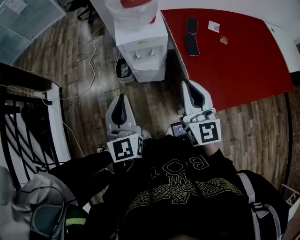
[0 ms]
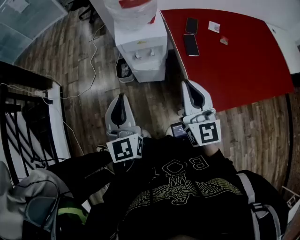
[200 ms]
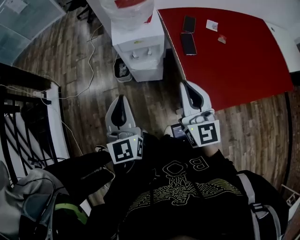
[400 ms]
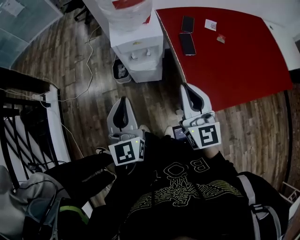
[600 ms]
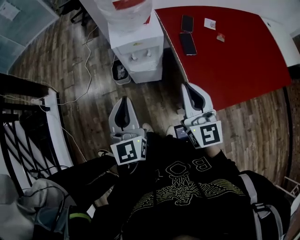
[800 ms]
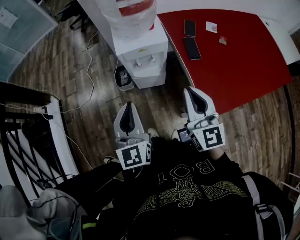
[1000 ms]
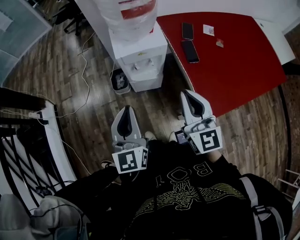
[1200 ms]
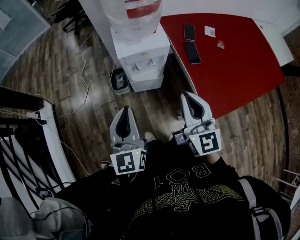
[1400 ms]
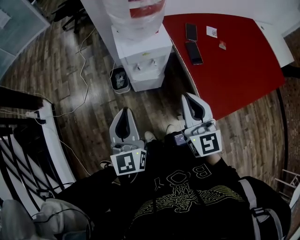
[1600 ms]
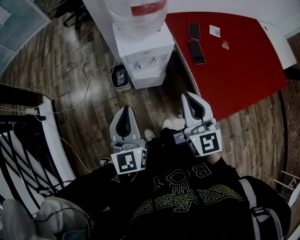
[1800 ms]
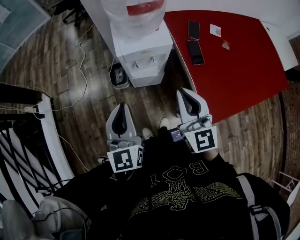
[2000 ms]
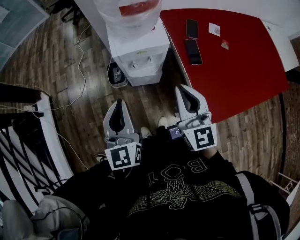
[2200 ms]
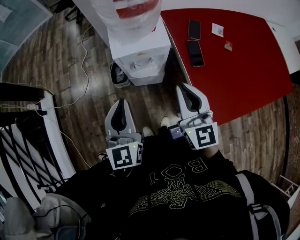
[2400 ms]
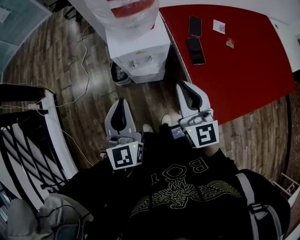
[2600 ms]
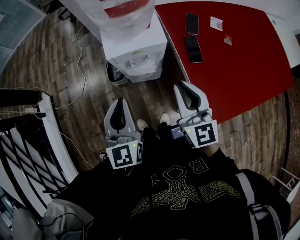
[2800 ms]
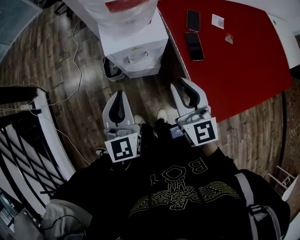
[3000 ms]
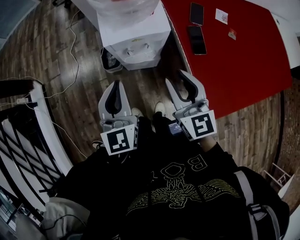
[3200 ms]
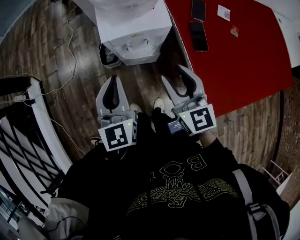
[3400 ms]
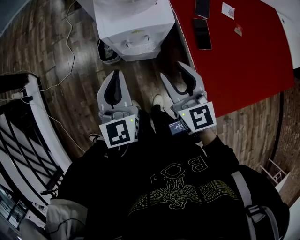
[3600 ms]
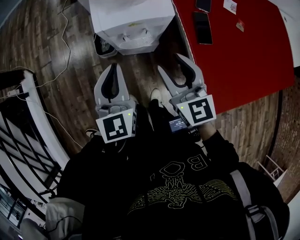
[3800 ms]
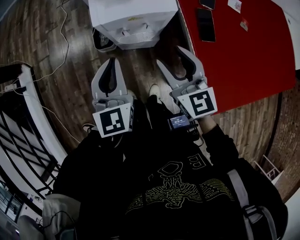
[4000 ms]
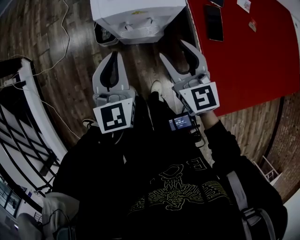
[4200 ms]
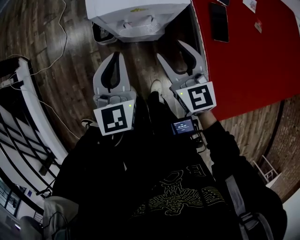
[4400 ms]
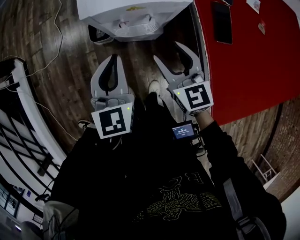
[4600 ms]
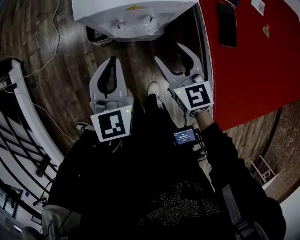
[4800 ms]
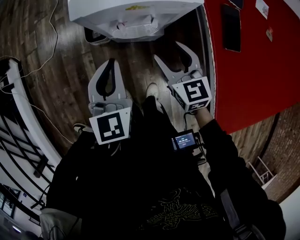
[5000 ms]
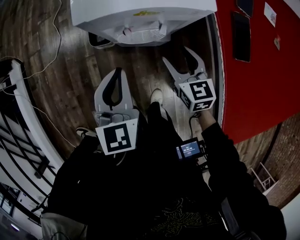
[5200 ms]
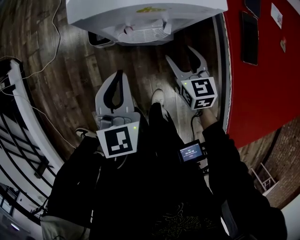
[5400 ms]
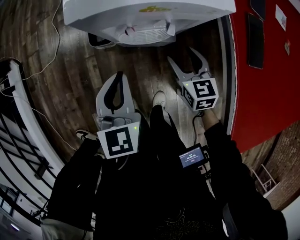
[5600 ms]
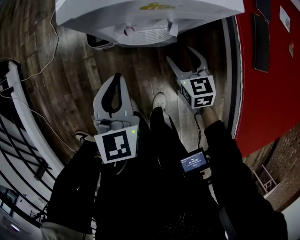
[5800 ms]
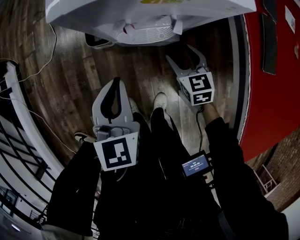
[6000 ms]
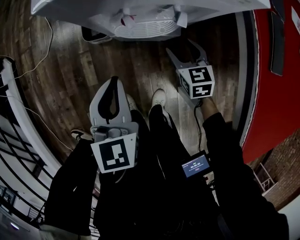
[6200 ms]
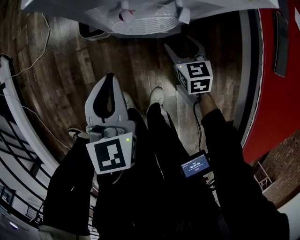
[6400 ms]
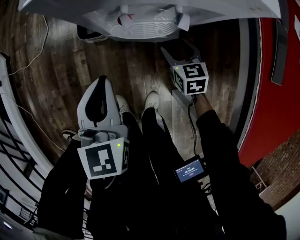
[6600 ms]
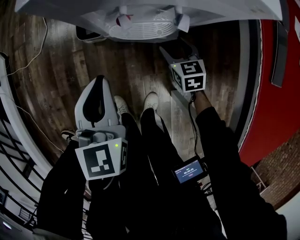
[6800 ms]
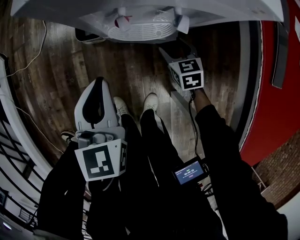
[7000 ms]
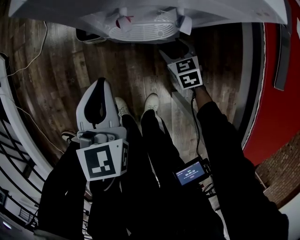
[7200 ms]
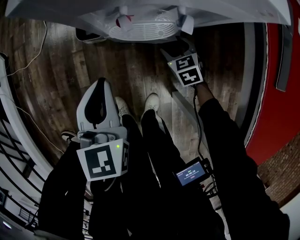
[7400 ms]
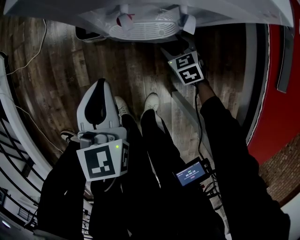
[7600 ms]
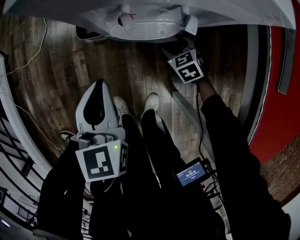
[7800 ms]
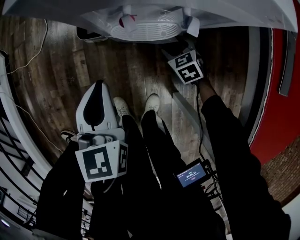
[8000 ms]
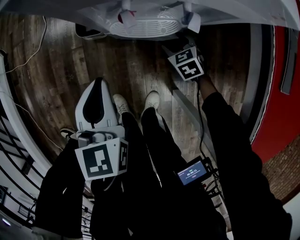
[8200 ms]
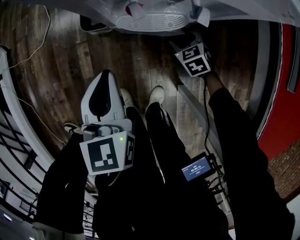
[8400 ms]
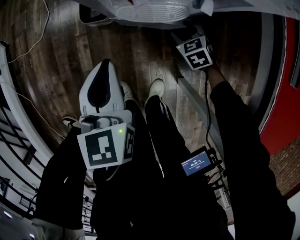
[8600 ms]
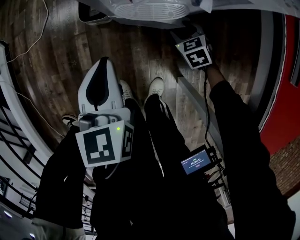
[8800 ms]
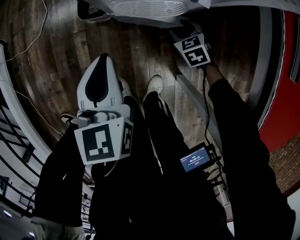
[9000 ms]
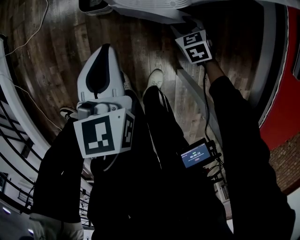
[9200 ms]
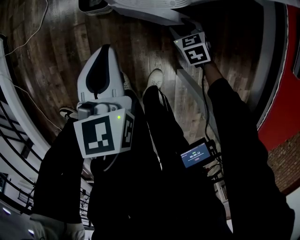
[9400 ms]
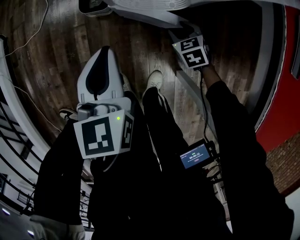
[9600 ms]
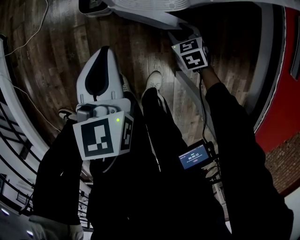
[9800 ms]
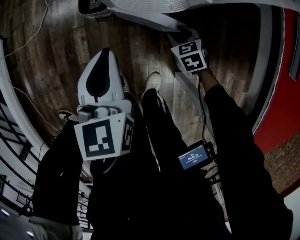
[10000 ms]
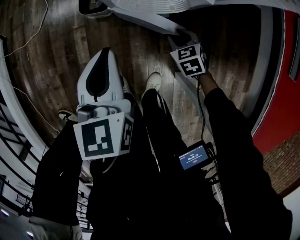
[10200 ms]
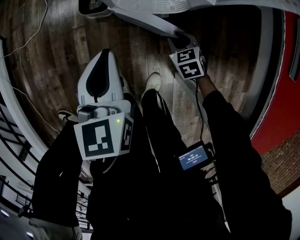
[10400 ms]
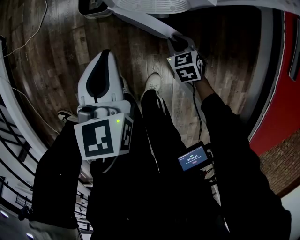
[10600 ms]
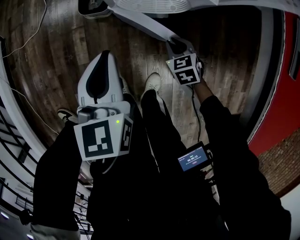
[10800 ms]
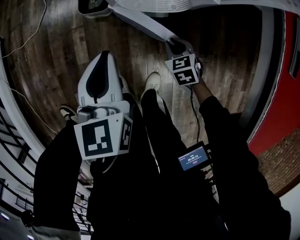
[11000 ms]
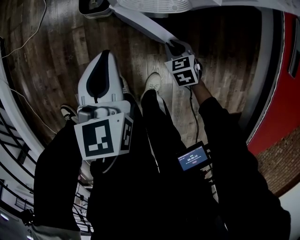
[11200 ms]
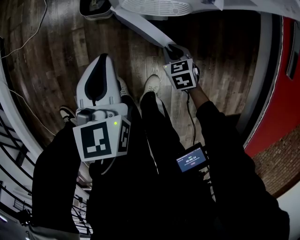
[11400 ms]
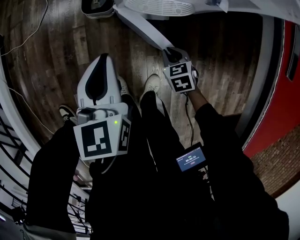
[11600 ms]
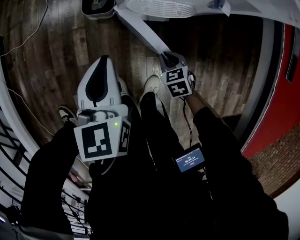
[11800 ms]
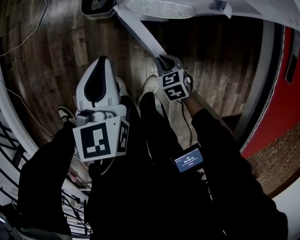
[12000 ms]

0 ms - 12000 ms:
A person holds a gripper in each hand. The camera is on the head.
0 ms - 1600 ms: The right gripper is displaced to the left by about 5 cm; the left gripper shifts roughly 10 cm to the left and forward.
1600 ms - 3000 ms: The right gripper travels forward and downward by some 10 cm, while the left gripper goes approximately 10 cm forward and to the right.
3000 ms - 4400 ms: Both grippers move downward and forward, about 15 cm. The right gripper opens up.
4400 ms - 6000 ms: The left gripper shifts roughly 20 cm downward, while the right gripper moves downward, about 30 cm, and rotates approximately 20 degrees.
6000 ms - 7600 ms: The right gripper goes some 15 cm downward, and swivels some 20 degrees.
7600 ms - 9000 ms: The grippers stay close to where they were, moving slightly.
9000 ms - 10400 ms: The right gripper ends up about 5 cm from where it was.
10400 ms - 12000 ms: The right gripper heads to the left and backward, covering approximately 10 cm; the left gripper heads to the left, covering about 5 cm.

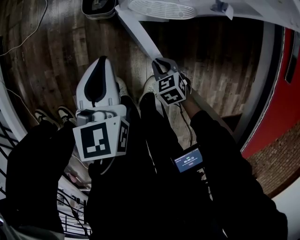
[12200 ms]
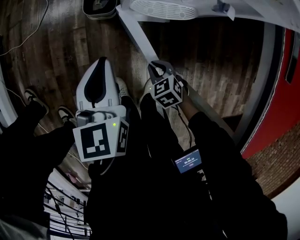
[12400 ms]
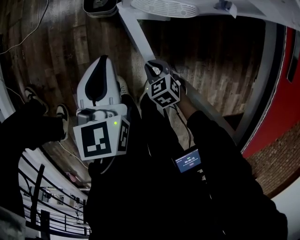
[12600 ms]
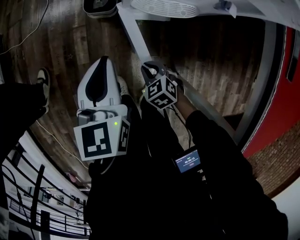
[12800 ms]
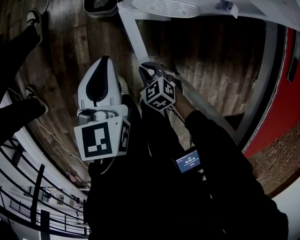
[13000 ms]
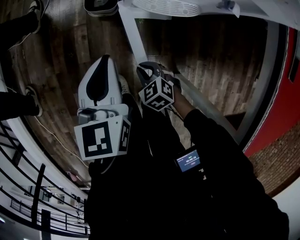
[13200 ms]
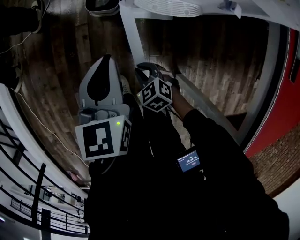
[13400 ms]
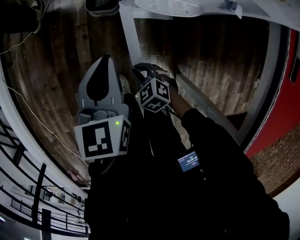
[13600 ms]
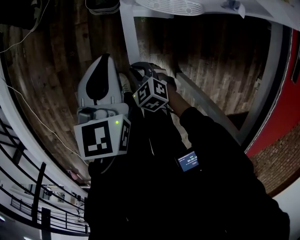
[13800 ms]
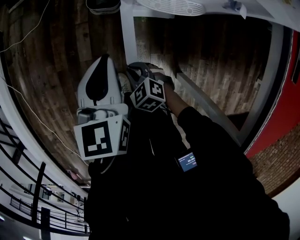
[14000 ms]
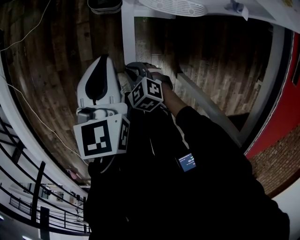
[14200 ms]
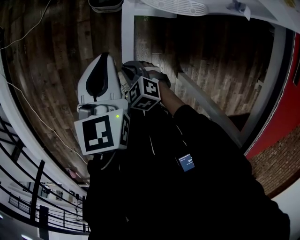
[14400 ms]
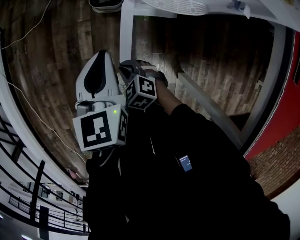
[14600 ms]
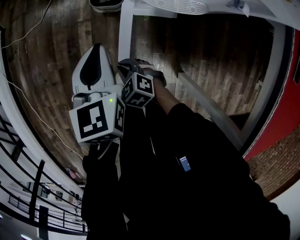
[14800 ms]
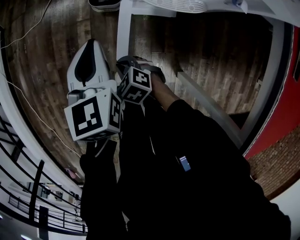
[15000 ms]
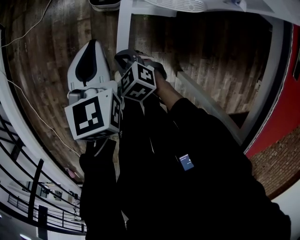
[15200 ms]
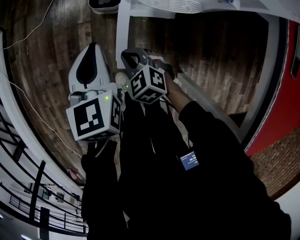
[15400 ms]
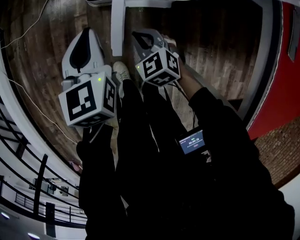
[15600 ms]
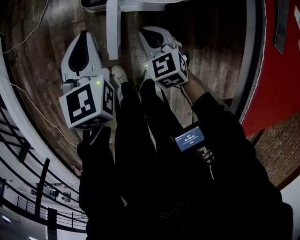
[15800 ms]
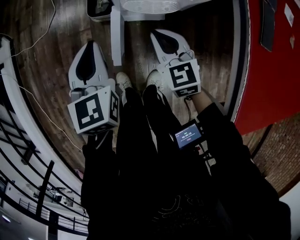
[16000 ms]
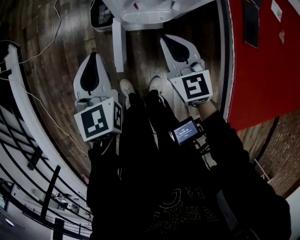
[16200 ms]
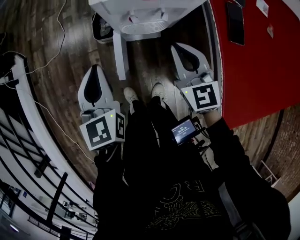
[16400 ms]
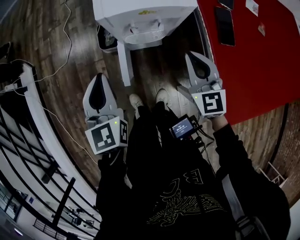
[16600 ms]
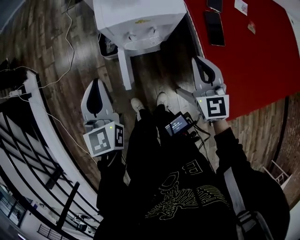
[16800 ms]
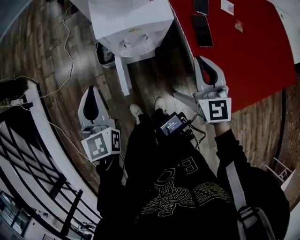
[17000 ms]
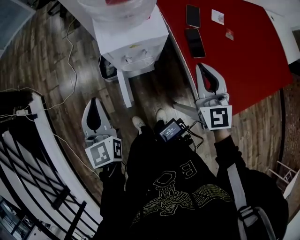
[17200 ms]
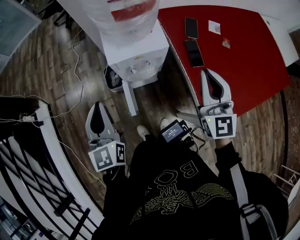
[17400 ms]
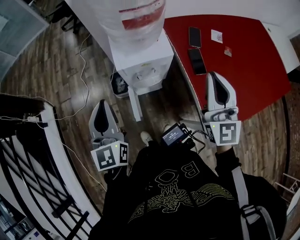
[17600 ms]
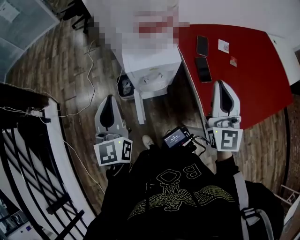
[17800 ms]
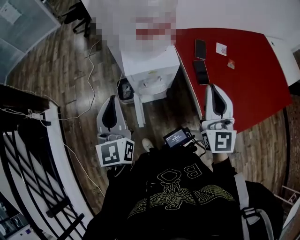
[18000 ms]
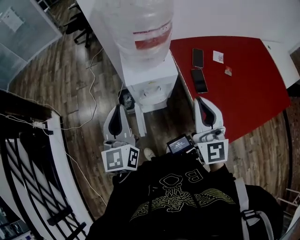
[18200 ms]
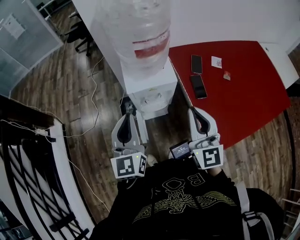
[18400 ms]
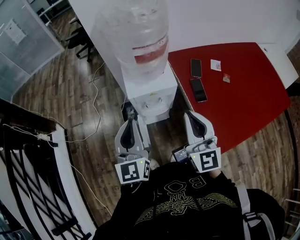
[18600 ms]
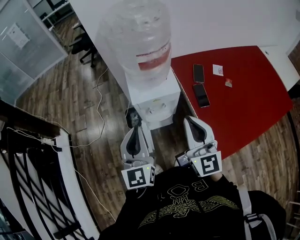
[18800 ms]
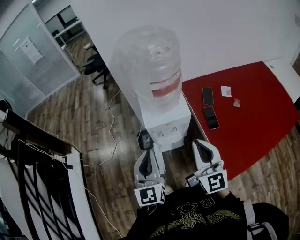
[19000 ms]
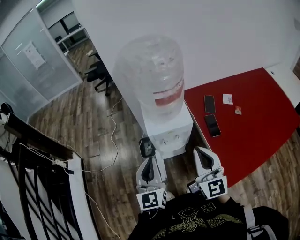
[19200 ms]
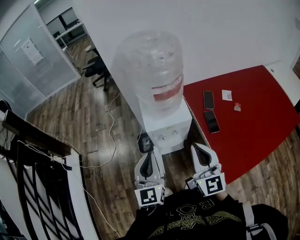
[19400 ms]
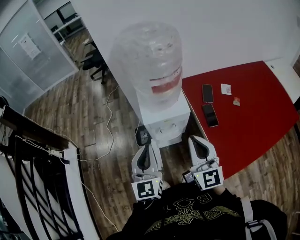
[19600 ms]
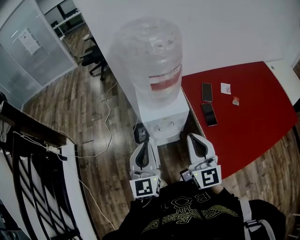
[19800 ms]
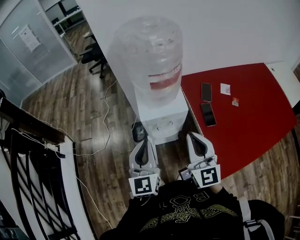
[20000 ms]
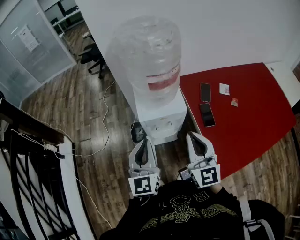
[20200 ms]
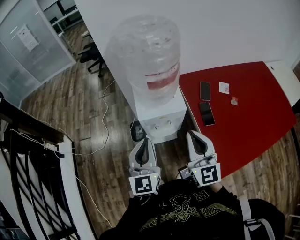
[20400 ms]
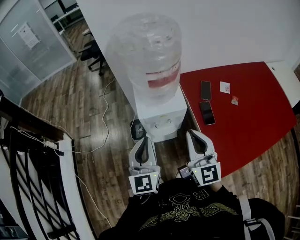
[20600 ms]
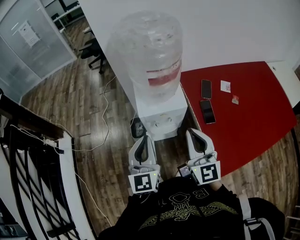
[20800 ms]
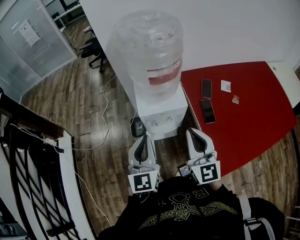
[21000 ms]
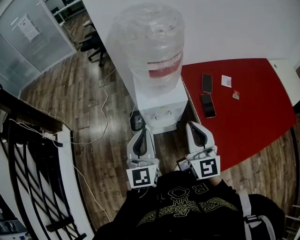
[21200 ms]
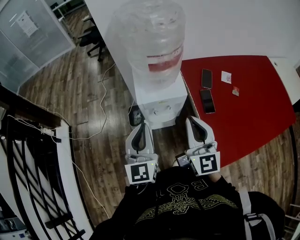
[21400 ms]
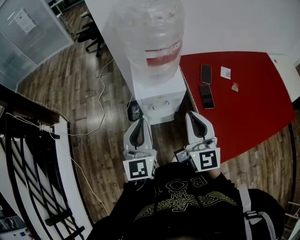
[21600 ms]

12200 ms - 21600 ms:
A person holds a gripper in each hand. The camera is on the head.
12200 ms - 13800 ms: The right gripper shifts about 10 cm to the left, and swivels roughly 20 degrees.
13800 ms - 15400 ms: The right gripper travels upward and forward by roughly 10 cm.
15400 ms - 17000 ms: The grippers both shift upward by about 40 cm. The right gripper tilts its fingers approximately 40 degrees upward. Meanwhile the left gripper rotates some 20 degrees.
17000 ms - 18400 ms: Both grippers travel together upward, some 15 cm.
18400 ms - 20000 ms: The grippers make only small movements.
20000 ms - 21600 ms: Both grippers stay about where they are.

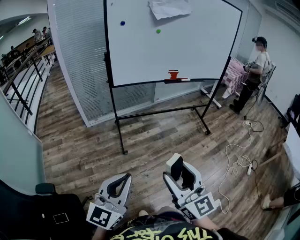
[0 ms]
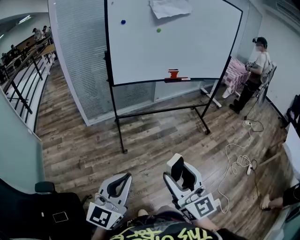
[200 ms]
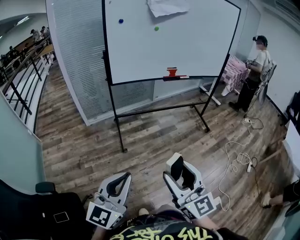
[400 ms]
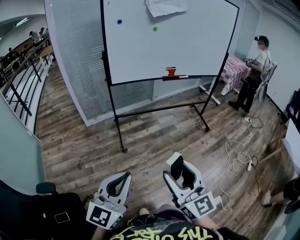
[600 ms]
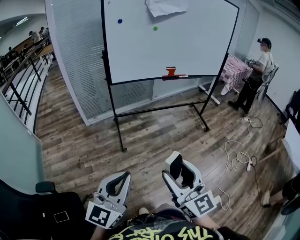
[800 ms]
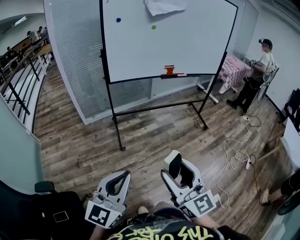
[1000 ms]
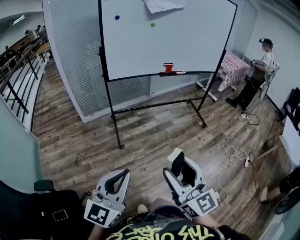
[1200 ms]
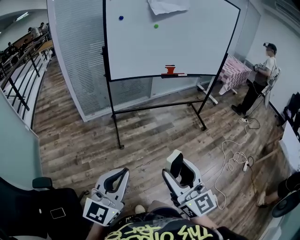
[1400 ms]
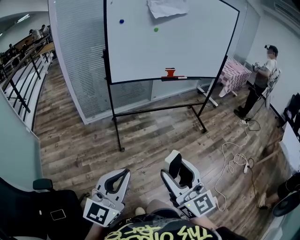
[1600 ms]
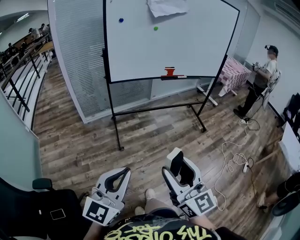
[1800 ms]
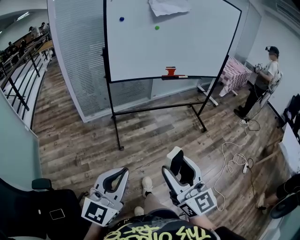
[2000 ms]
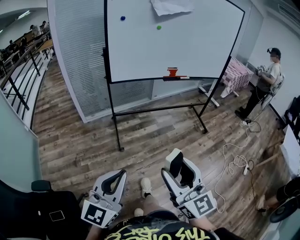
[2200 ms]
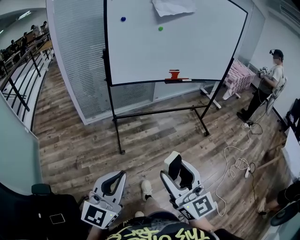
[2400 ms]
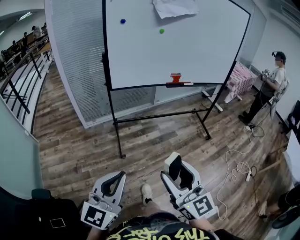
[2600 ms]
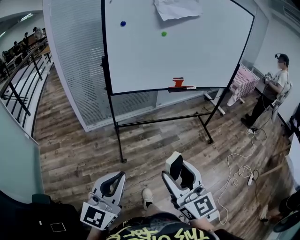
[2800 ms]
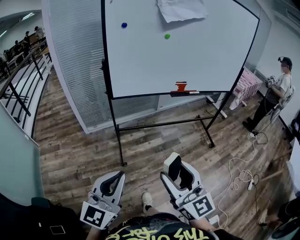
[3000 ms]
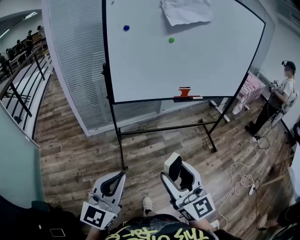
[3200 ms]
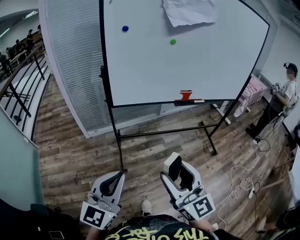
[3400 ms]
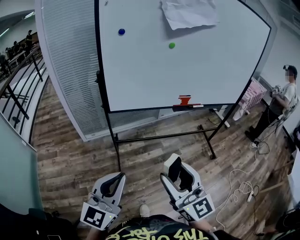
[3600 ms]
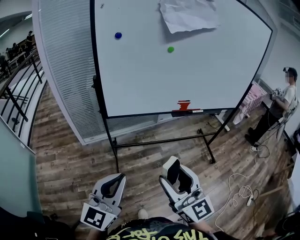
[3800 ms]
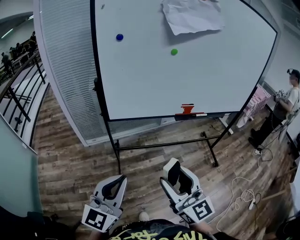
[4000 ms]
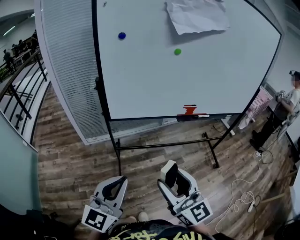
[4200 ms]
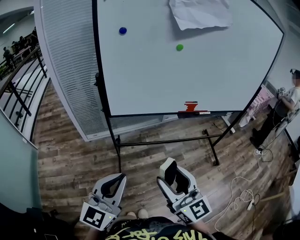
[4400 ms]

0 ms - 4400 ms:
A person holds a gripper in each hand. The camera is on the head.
0 ms - 1400 ms: The grippers move only a little.
1400 ms - 3000 ms: Both grippers move forward, roughly 15 cm.
3000 ms - 4400 ms: The grippers both shift forward by roughly 15 cm.
